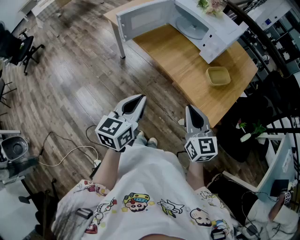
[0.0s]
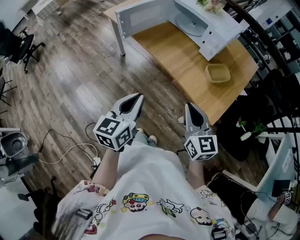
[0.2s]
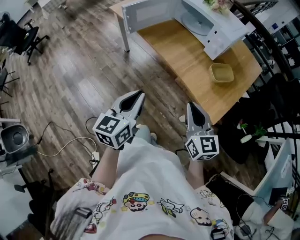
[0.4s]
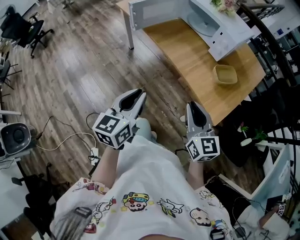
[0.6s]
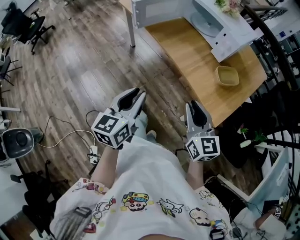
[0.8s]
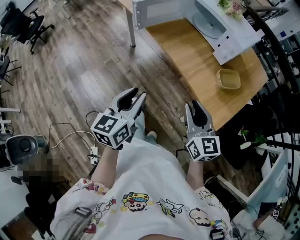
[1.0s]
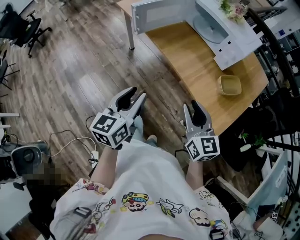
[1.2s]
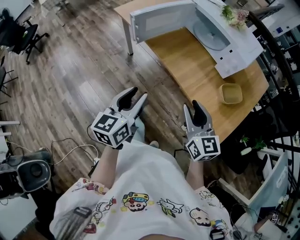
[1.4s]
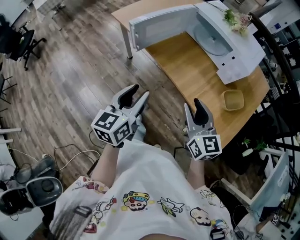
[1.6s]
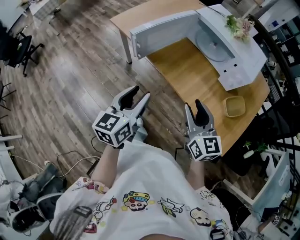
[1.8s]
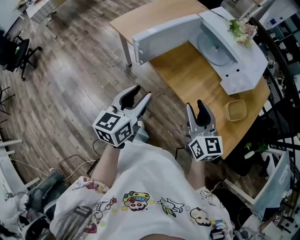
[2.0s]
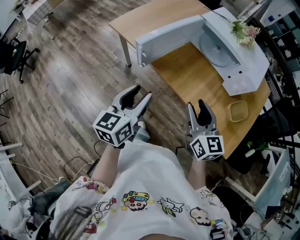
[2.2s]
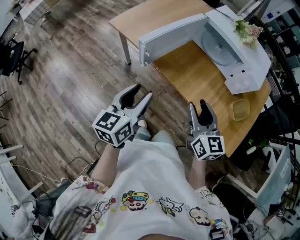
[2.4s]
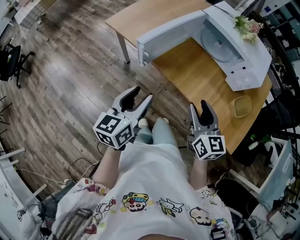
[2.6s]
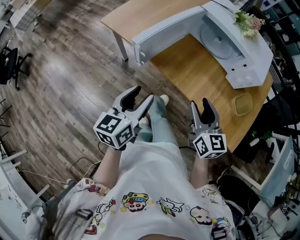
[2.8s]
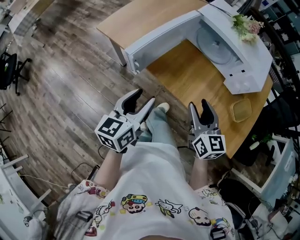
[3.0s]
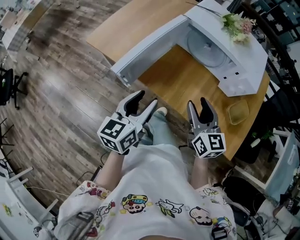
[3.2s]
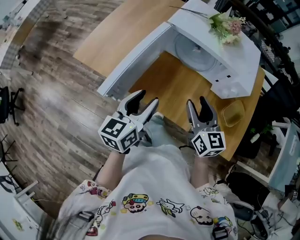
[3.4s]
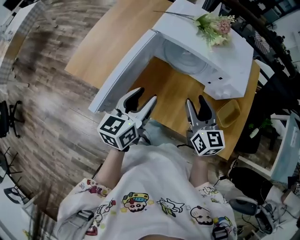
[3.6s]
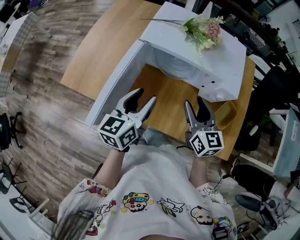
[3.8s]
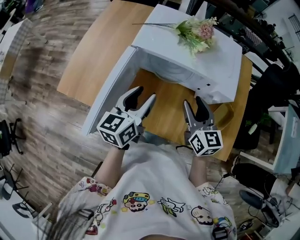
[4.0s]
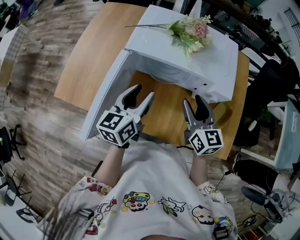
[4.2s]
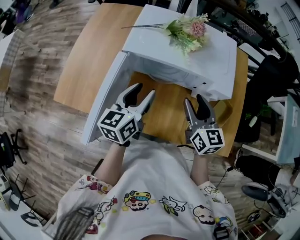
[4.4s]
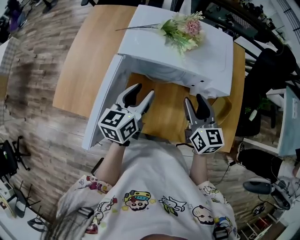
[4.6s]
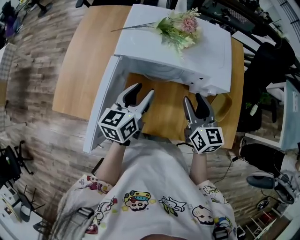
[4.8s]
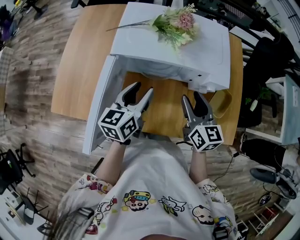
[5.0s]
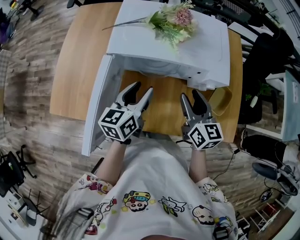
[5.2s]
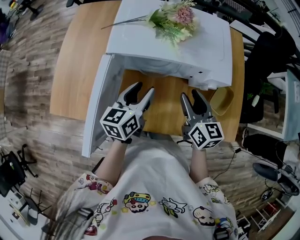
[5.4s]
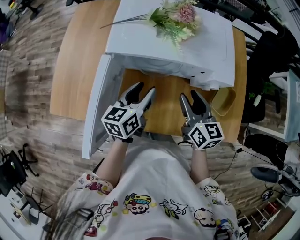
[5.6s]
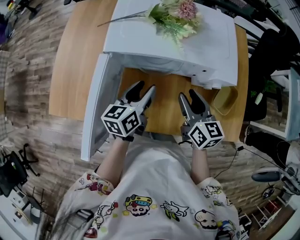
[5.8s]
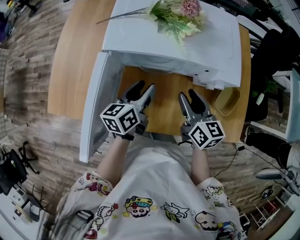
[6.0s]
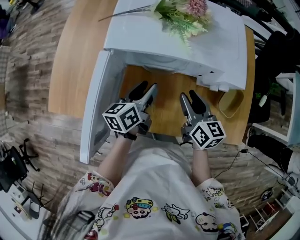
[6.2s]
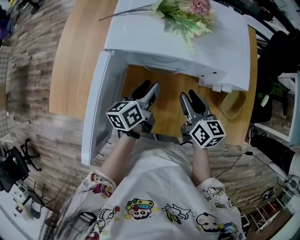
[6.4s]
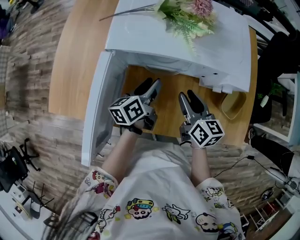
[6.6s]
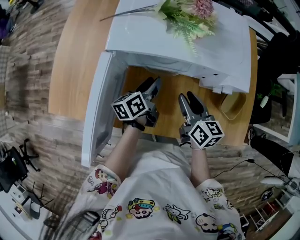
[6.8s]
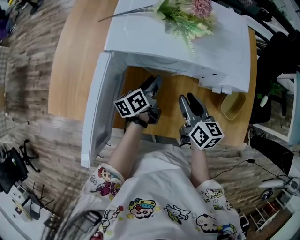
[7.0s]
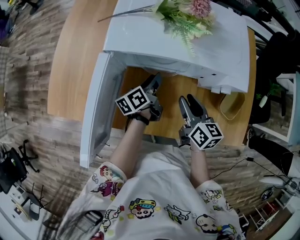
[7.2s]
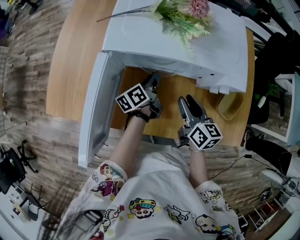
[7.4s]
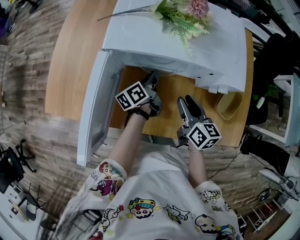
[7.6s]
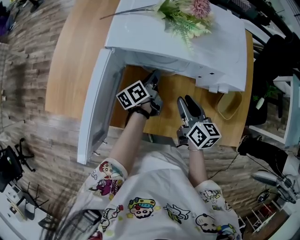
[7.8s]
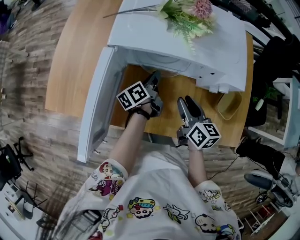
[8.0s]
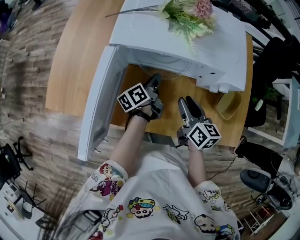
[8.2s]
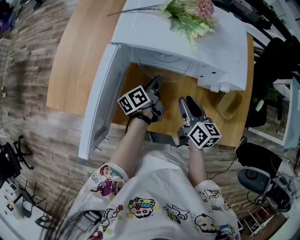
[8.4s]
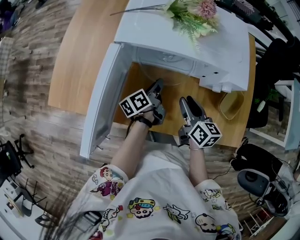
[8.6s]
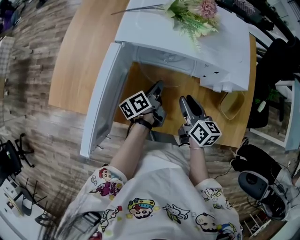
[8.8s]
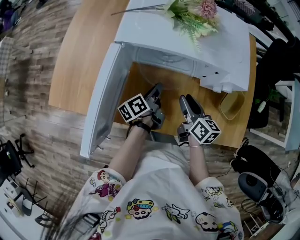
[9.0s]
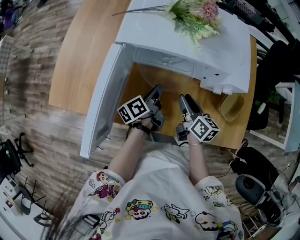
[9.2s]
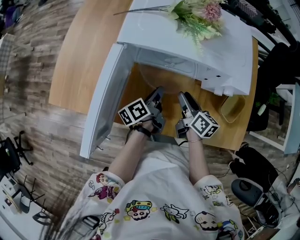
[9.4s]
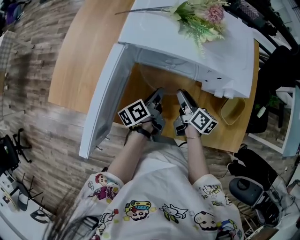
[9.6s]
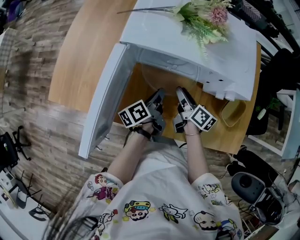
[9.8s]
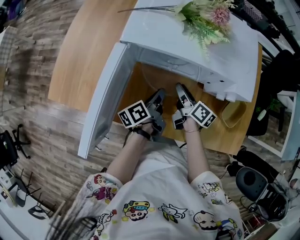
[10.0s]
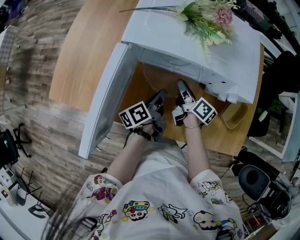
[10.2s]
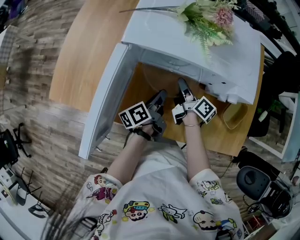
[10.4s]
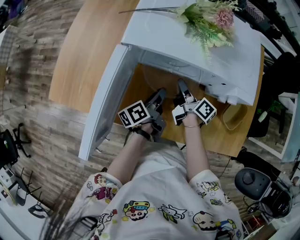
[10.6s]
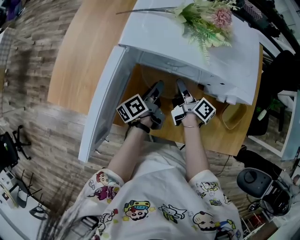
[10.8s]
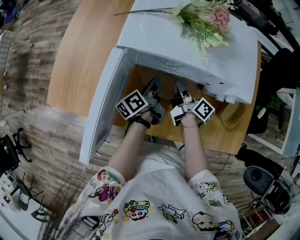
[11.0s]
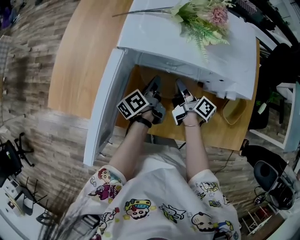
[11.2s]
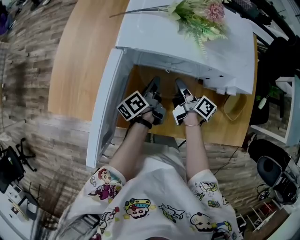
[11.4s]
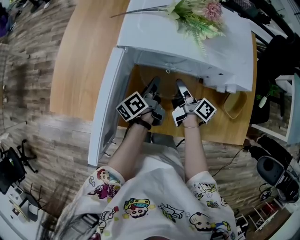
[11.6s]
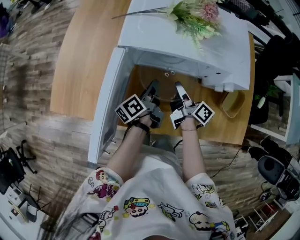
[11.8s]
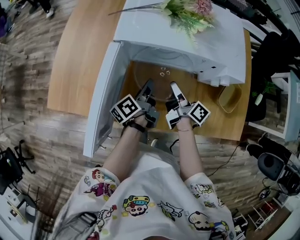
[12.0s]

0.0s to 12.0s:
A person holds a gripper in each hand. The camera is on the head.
0.0s to 1.6s: Both grippers travel together forward and to the left, roughly 15 cm. The right gripper opens up; the left gripper opens up.
1.6s to 3.0s: The grippers both shift forward by some 15 cm.
3.0s to 4.4s: The right gripper moves forward and to the right, approximately 20 cm, and turns by about 20 degrees, while the left gripper goes some 30 cm forward, and turns by about 20 degrees.
4.4s to 6.0s: Both grippers move downward, roughly 10 cm.
6.0s to 7.6s: The right gripper is displaced downward by roughly 5 cm. Meanwhile the left gripper is displaced downward and forward by approximately 10 cm, changes its angle by roughly 30 degrees, and closes.
7.6s to 9.0s: The left gripper moves backward, some 5 cm.
9.0s to 10.4s: The right gripper is displaced forward by approximately 10 cm, and rotates approximately 30 degrees.
10.4s to 12.0s: The right gripper goes approximately 5 cm backward, while the left gripper opens, then closes again.

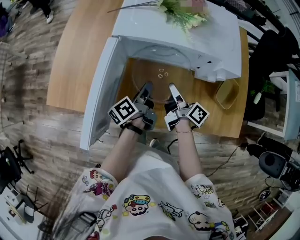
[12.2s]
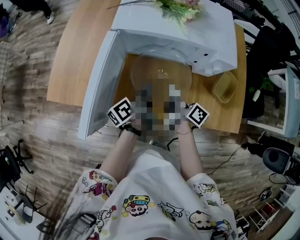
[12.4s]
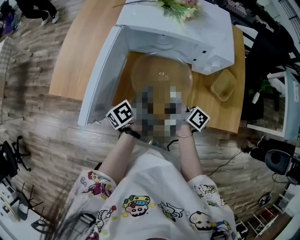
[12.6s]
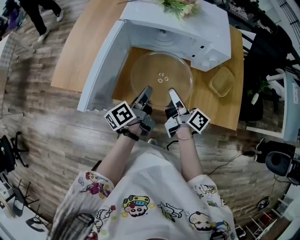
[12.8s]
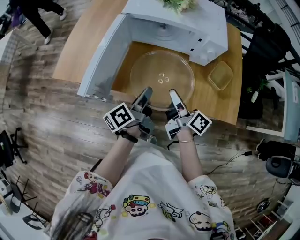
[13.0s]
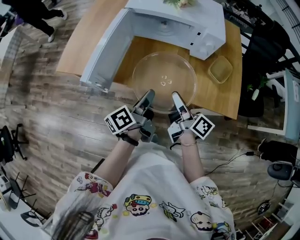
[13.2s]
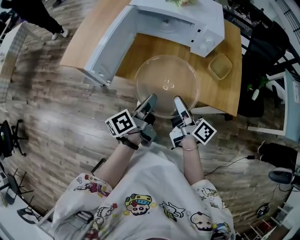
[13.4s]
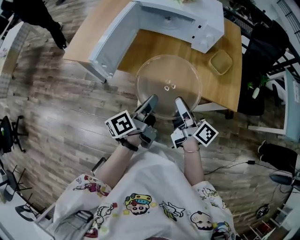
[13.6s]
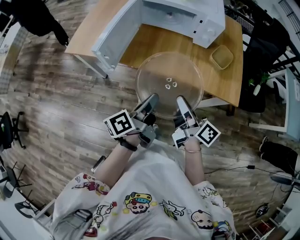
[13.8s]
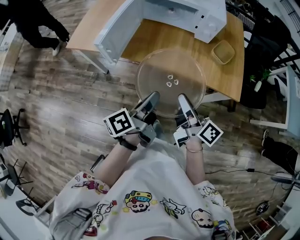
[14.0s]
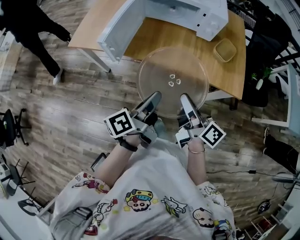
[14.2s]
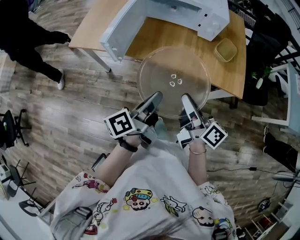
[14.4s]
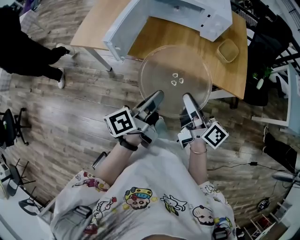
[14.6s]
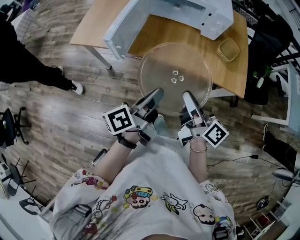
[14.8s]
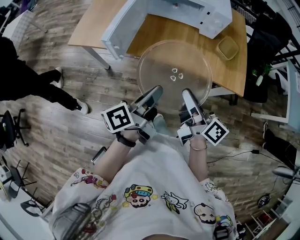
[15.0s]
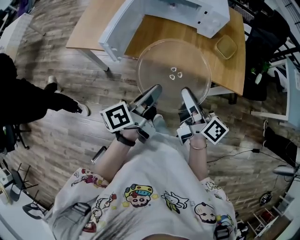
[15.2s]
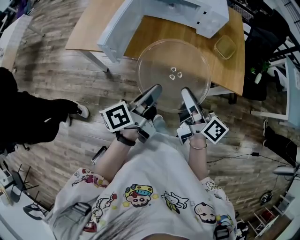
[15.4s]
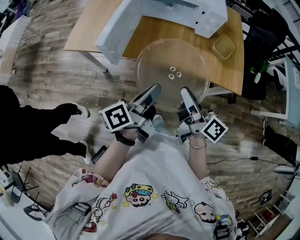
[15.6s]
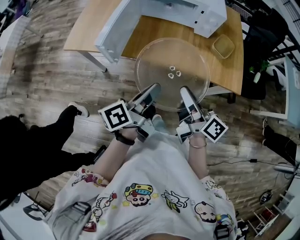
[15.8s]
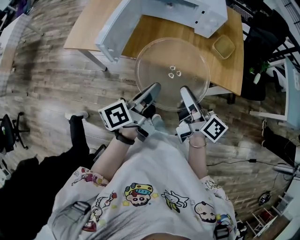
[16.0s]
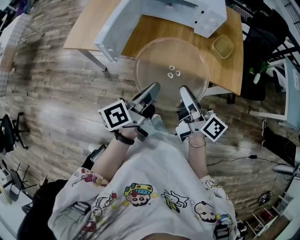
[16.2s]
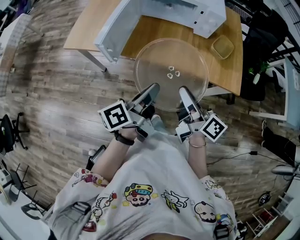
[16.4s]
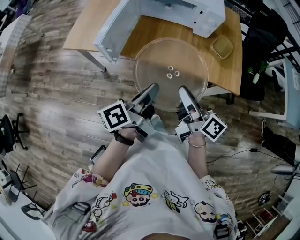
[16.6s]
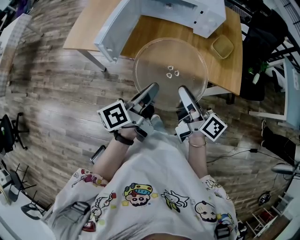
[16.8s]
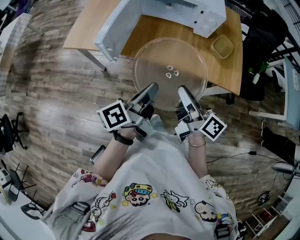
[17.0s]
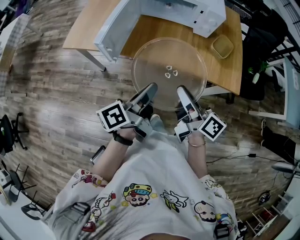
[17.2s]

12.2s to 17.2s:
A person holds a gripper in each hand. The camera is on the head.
12.2s to 13.8s: Both grippers move backward, some 35 cm.
13.8s to 15.6s: The right gripper changes place by about 5 cm.
15.6s to 17.2s: Both grippers stay put.

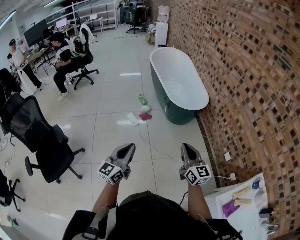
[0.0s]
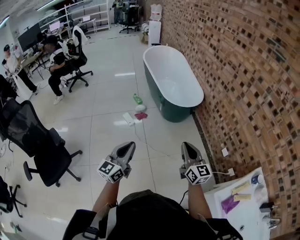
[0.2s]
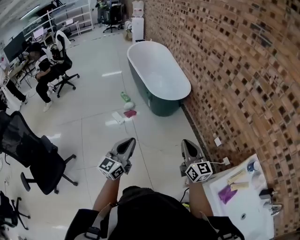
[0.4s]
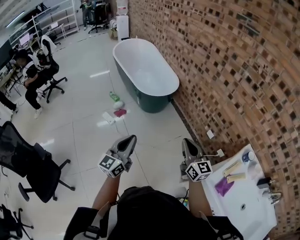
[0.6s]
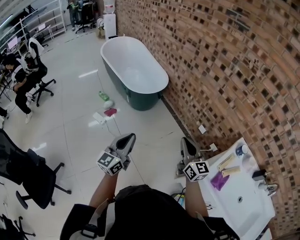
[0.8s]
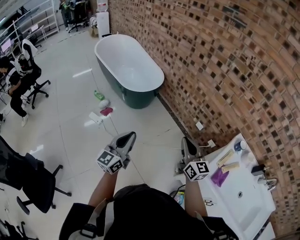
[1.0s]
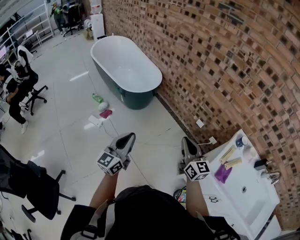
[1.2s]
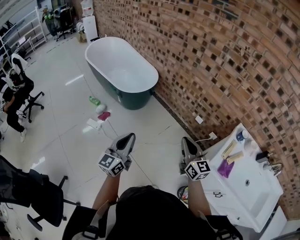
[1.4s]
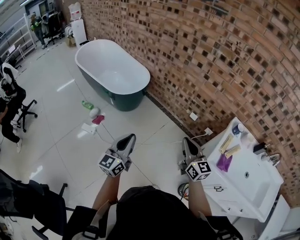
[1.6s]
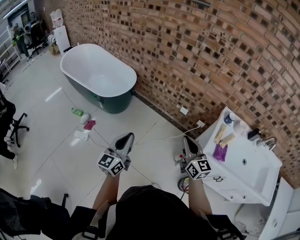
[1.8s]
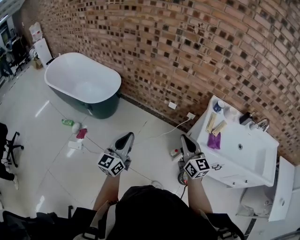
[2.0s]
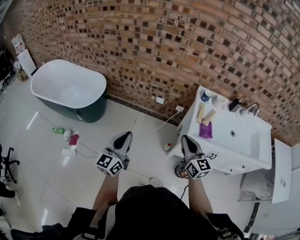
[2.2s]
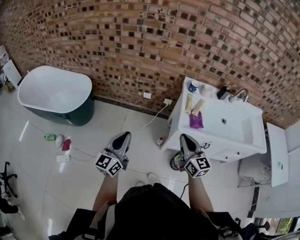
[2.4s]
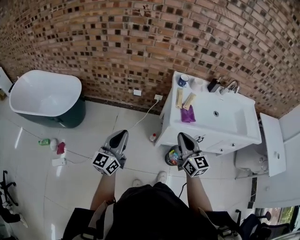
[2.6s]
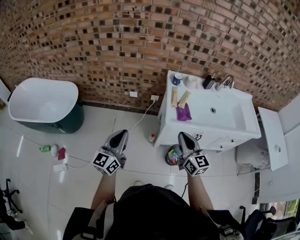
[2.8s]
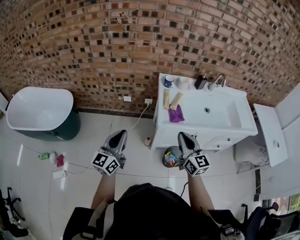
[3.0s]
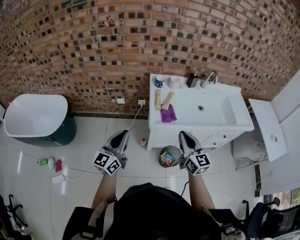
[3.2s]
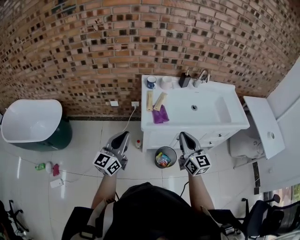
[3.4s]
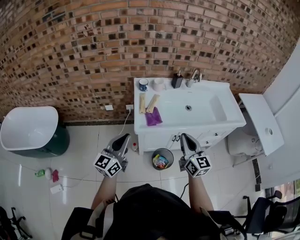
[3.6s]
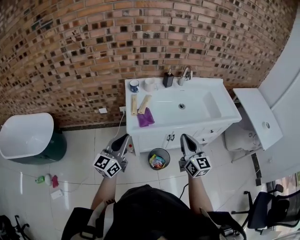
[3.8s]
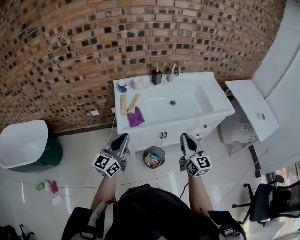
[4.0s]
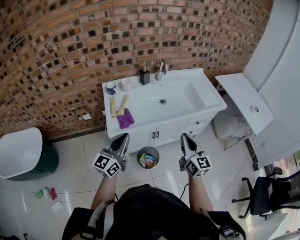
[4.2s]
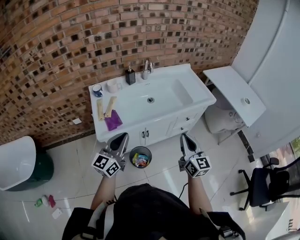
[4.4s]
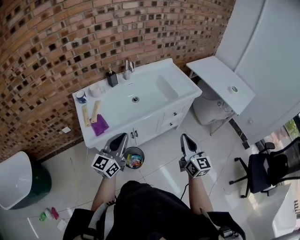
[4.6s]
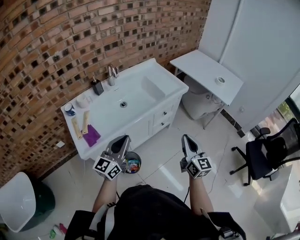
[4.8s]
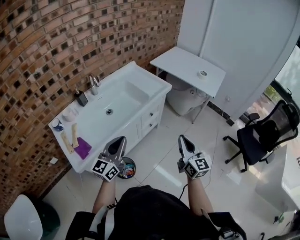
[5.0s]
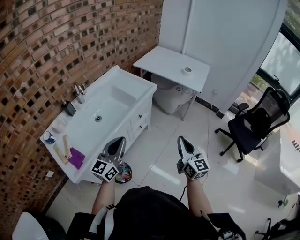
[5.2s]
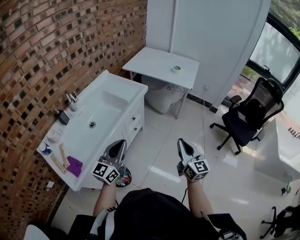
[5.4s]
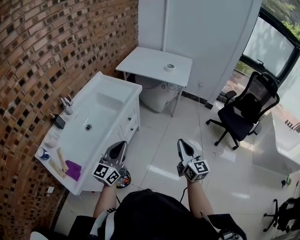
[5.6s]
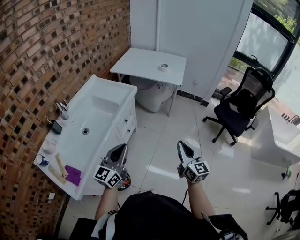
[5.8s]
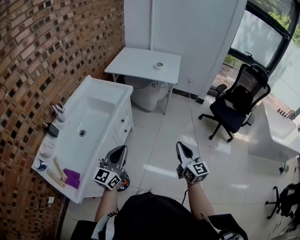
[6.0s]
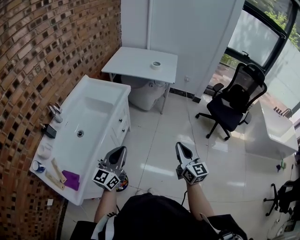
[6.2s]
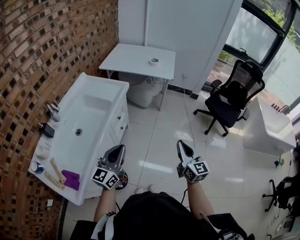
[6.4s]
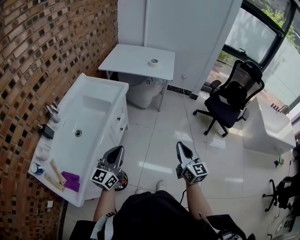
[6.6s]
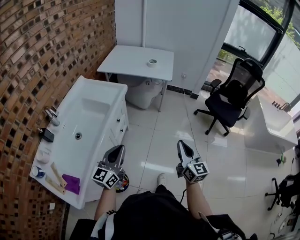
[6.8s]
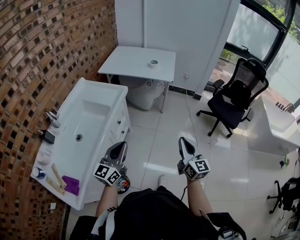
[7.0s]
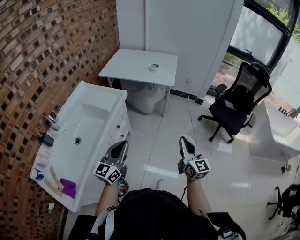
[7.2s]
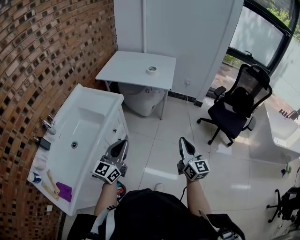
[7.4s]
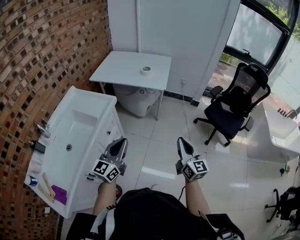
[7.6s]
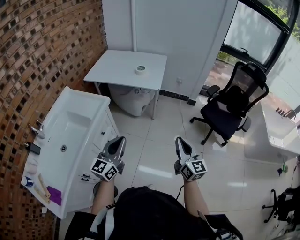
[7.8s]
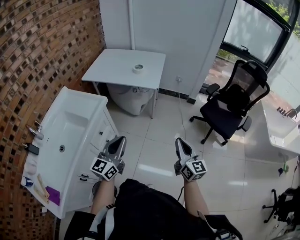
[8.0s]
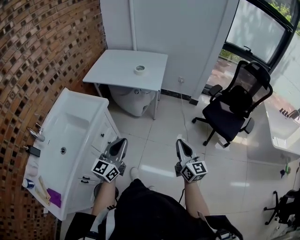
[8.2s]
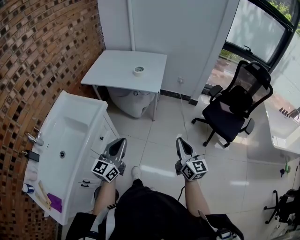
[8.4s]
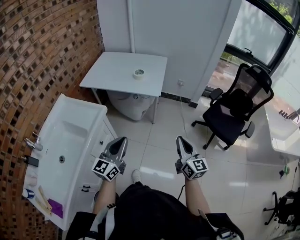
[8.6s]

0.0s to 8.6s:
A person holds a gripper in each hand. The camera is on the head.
0.0s to 1.4s: The left gripper moves approximately 15 cm, and rotates some 30 degrees; the right gripper changes place by about 15 cm, and turns by some 30 degrees.
1.4s to 2.8s: The right gripper changes place by about 25 cm, and rotates approximately 40 degrees. Meanwhile the left gripper changes place by some 20 cm, and turns by about 40 degrees.
2.8s to 4.4s: The left gripper changes place by about 40 cm, and rotates some 30 degrees. Meanwhile the right gripper moves some 40 cm, and changes its angle by about 30 degrees.
4.4s to 5.8s: The left gripper changes place by roughly 25 cm, and turns by about 40 degrees; the right gripper shifts by about 25 cm, and turns by roughly 40 degrees.
5.8s to 7.2s: Both grippers move forward, some 10 cm.
7.2s to 8.6s: The two grippers go about 20 cm forward and to the right.
